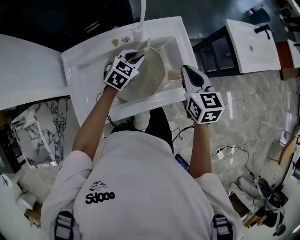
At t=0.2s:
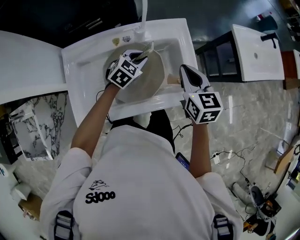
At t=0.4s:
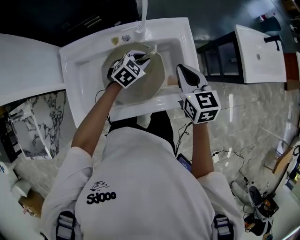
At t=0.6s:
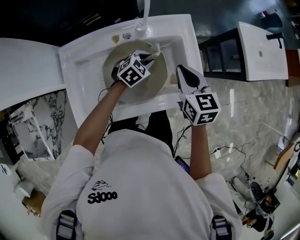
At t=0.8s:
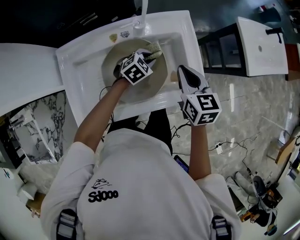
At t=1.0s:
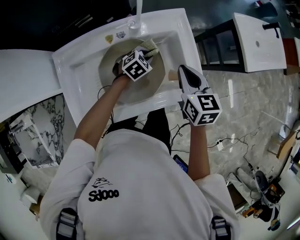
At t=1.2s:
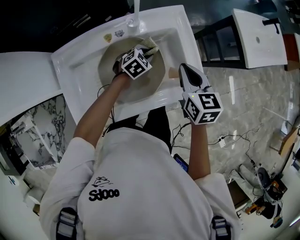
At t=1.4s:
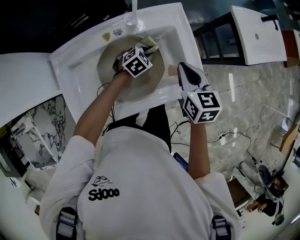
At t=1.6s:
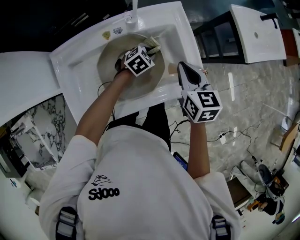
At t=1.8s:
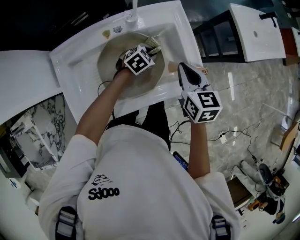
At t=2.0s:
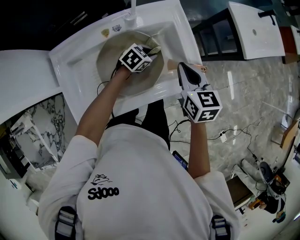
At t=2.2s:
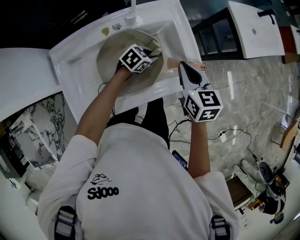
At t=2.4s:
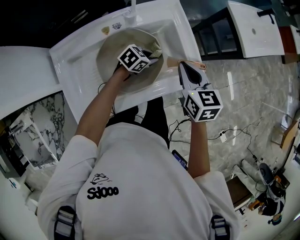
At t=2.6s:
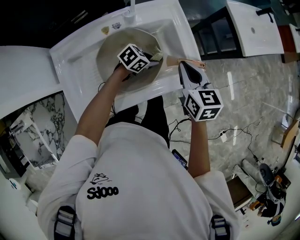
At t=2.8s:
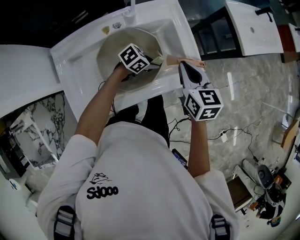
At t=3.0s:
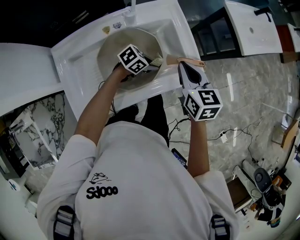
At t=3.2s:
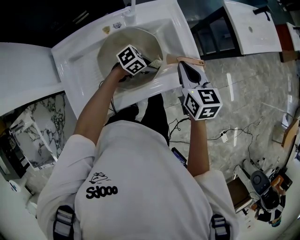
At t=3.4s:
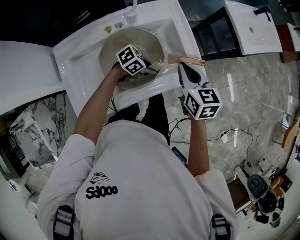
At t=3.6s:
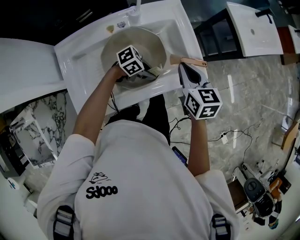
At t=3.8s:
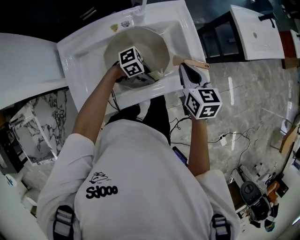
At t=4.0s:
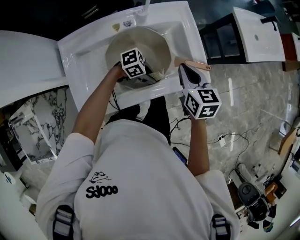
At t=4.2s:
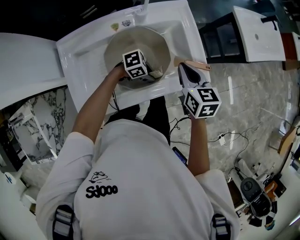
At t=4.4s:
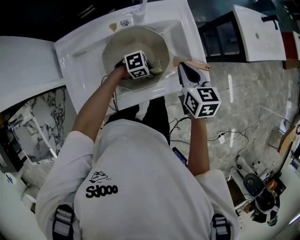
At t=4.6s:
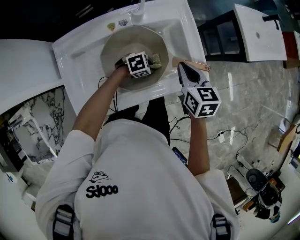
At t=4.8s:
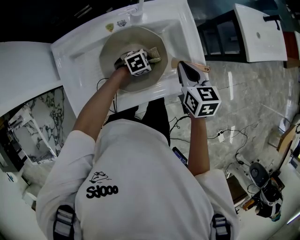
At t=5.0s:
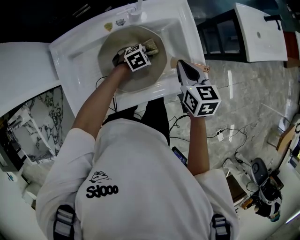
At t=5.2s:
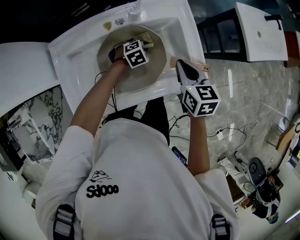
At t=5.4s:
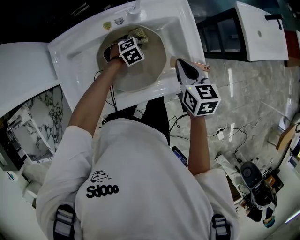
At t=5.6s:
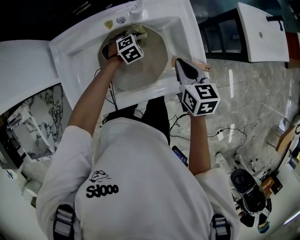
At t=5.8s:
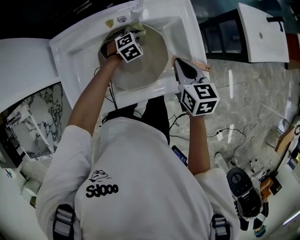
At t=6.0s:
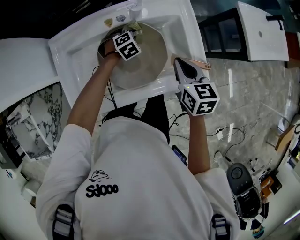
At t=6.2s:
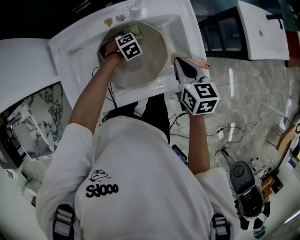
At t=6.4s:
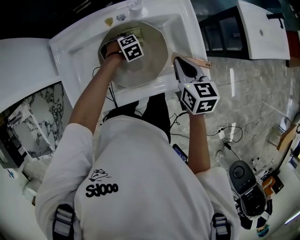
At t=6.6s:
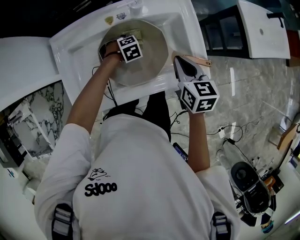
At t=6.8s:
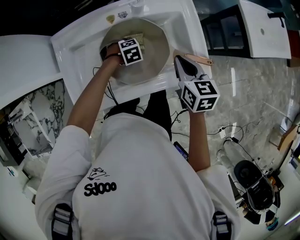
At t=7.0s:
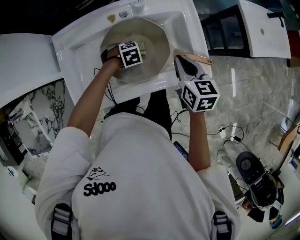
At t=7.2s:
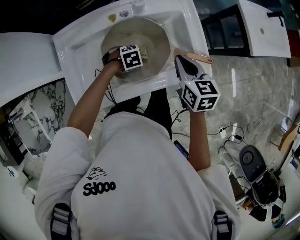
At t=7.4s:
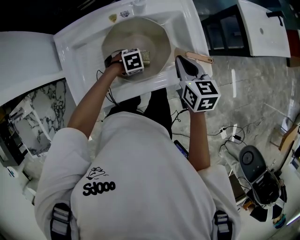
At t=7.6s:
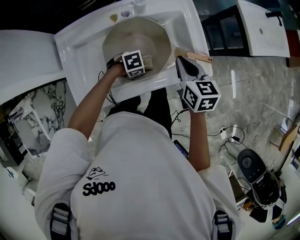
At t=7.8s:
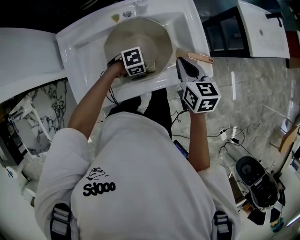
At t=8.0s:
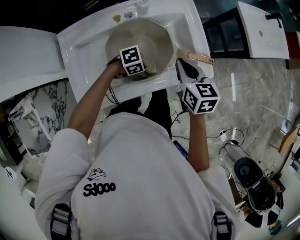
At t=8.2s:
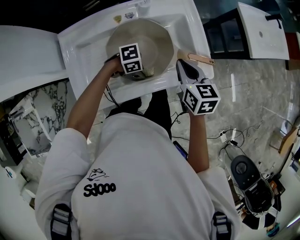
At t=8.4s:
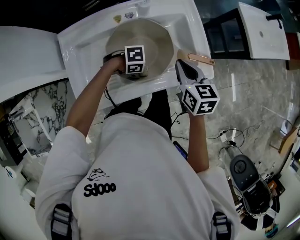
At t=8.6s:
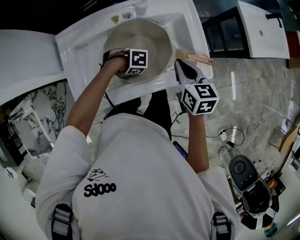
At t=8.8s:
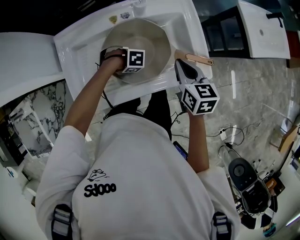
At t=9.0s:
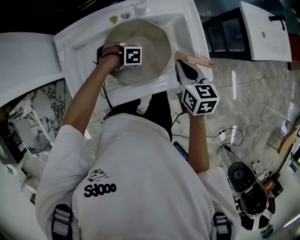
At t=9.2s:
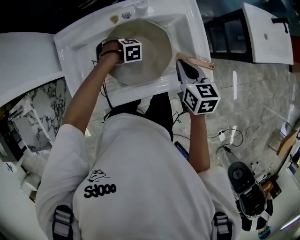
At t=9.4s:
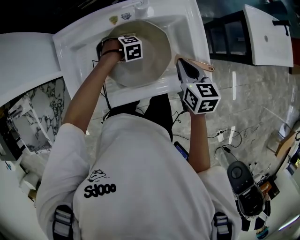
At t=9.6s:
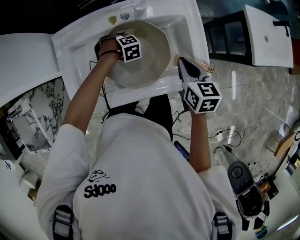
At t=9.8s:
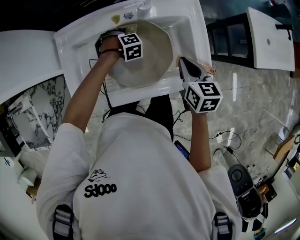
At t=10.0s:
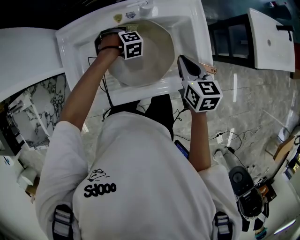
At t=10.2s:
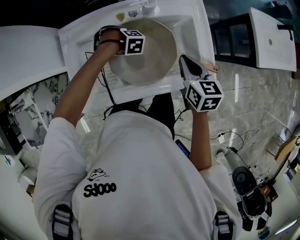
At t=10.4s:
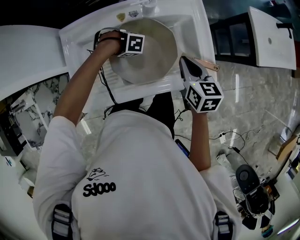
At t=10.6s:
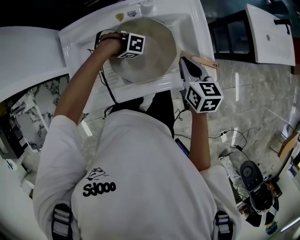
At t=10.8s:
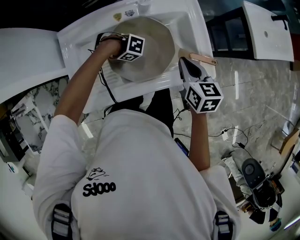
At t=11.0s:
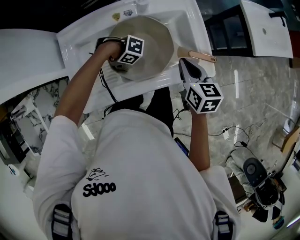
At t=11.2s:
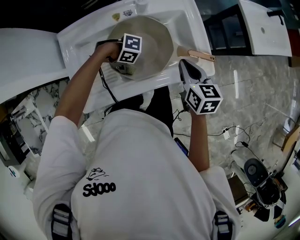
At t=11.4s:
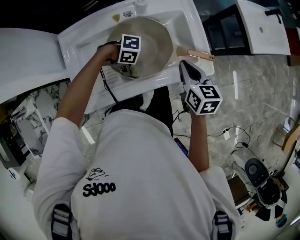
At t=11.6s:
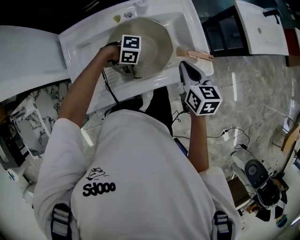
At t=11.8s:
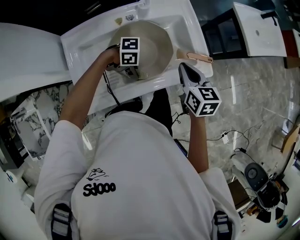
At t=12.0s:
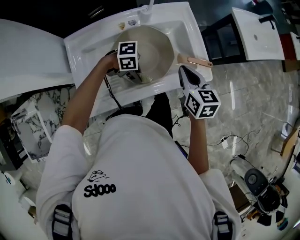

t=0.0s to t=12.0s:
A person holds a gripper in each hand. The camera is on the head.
t=0.0s to t=1.6s: The left gripper heads downward and to the right, covering some 15 cm, and rotates approximately 20 degrees.
t=1.6s to t=3.0s: The left gripper moves backward and to the right, roughly 10 cm, and rotates roughly 30 degrees.
t=3.0s to t=4.4s: The left gripper ends up some 5 cm from where it was.
t=4.4s to t=6.0s: The left gripper ends up approximately 20 cm from where it was, and swivels about 50 degrees.
t=6.0s to t=7.6s: The left gripper ends up some 20 cm from where it was, and rotates roughly 40 degrees.
t=7.6s to t=9.0s: The left gripper moves some 10 cm, and swivels some 30 degrees.
t=10.4s to t=12.0s: The right gripper moves approximately 5 cm. Meanwhile the left gripper ends up some 20 cm from where it was, and swivels about 50 degrees.

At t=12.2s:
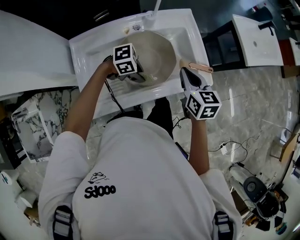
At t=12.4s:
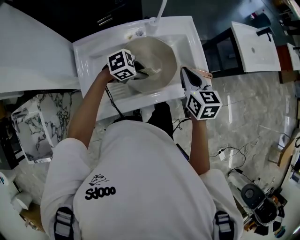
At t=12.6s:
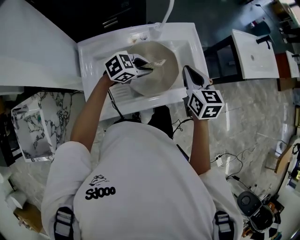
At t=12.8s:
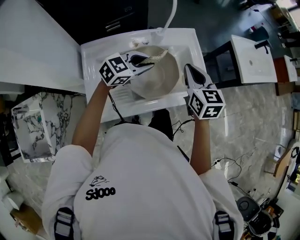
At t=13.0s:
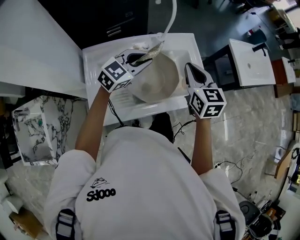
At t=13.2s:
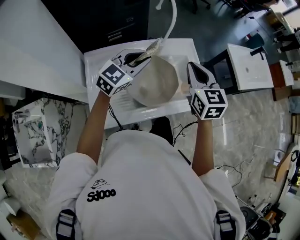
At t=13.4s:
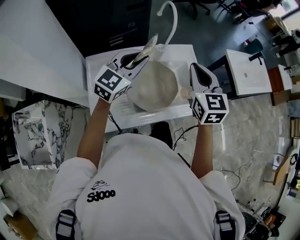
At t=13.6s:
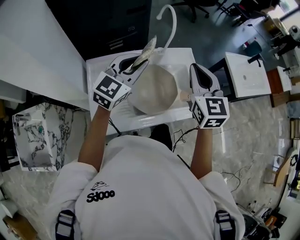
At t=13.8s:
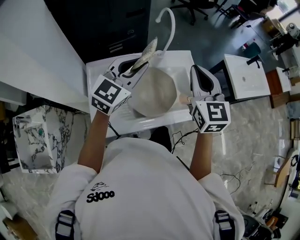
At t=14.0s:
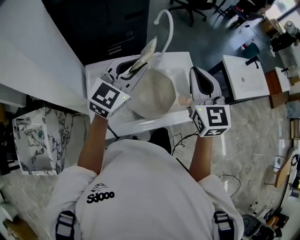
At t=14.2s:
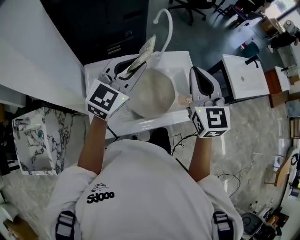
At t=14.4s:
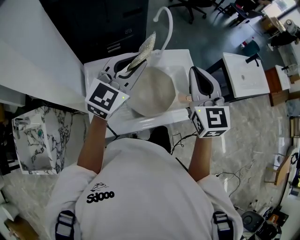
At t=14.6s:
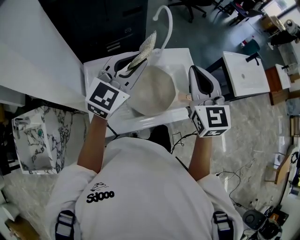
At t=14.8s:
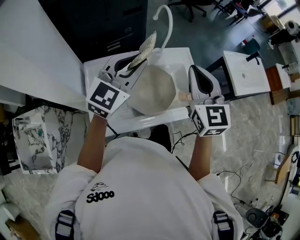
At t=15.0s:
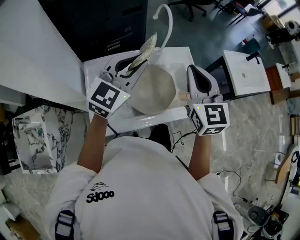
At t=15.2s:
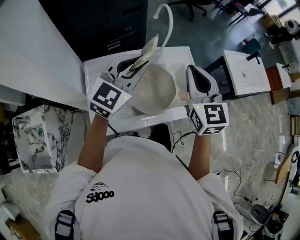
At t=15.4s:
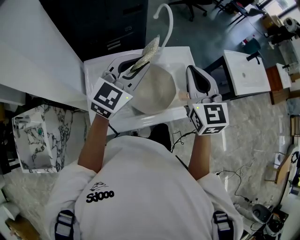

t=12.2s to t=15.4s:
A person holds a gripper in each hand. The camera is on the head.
t=12.2s to t=13.8s: The two grippers go some 25 cm upward. The left gripper tips its fingers upward by approximately 40 degrees; the right gripper changes its angle by roughly 30 degrees.
t=13.8s to t=15.4s: The grippers move only a little.

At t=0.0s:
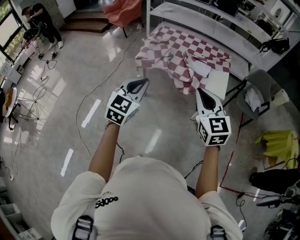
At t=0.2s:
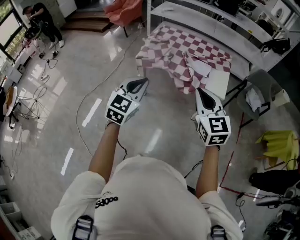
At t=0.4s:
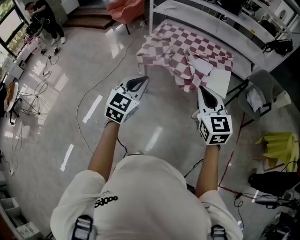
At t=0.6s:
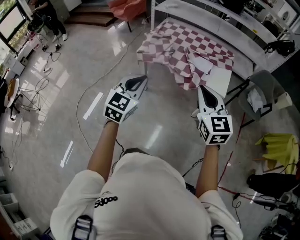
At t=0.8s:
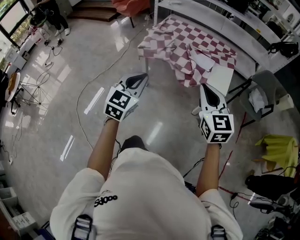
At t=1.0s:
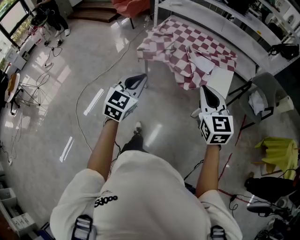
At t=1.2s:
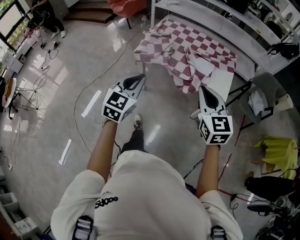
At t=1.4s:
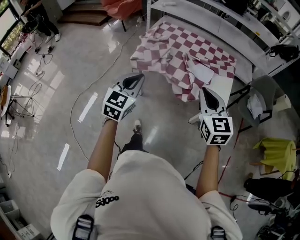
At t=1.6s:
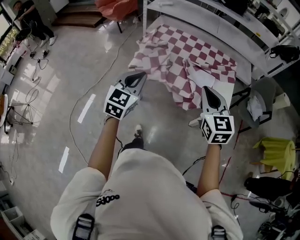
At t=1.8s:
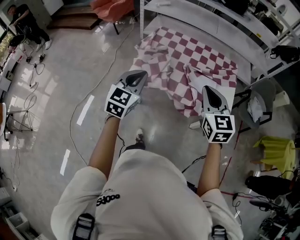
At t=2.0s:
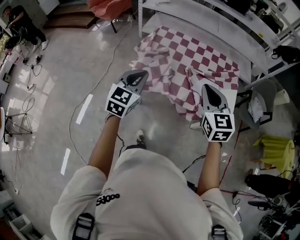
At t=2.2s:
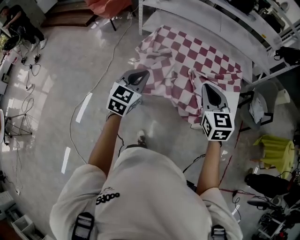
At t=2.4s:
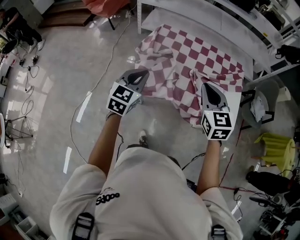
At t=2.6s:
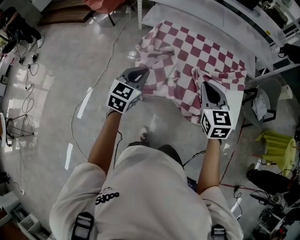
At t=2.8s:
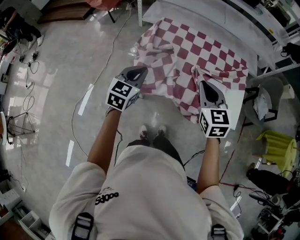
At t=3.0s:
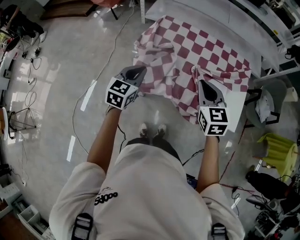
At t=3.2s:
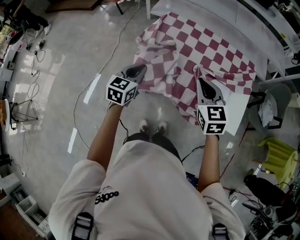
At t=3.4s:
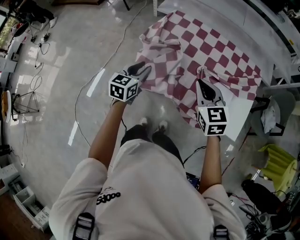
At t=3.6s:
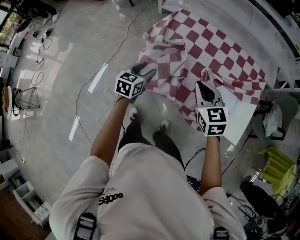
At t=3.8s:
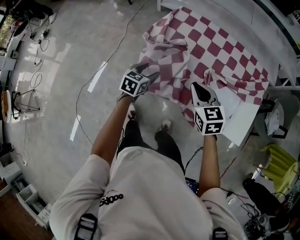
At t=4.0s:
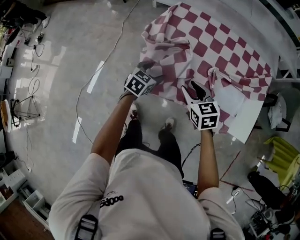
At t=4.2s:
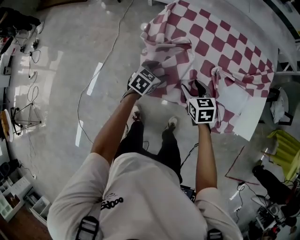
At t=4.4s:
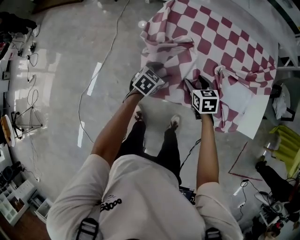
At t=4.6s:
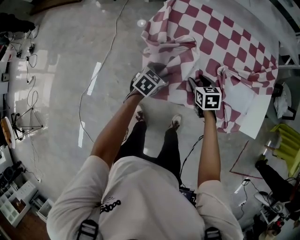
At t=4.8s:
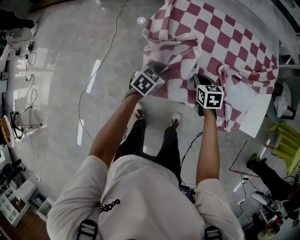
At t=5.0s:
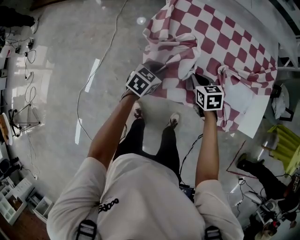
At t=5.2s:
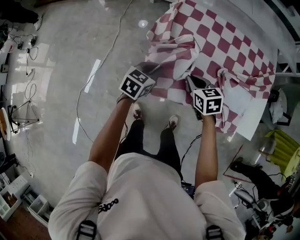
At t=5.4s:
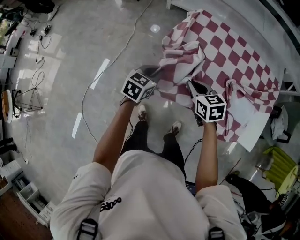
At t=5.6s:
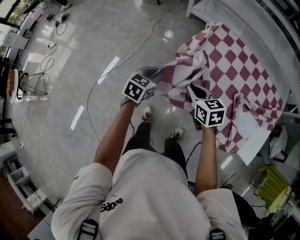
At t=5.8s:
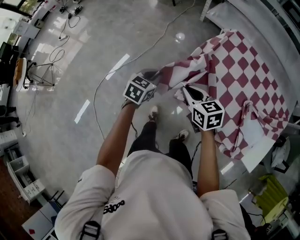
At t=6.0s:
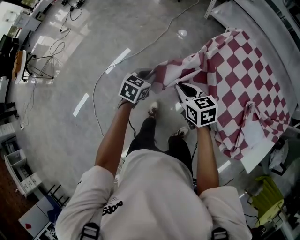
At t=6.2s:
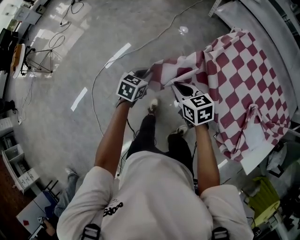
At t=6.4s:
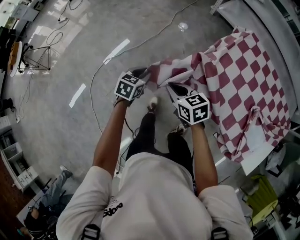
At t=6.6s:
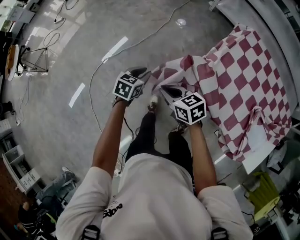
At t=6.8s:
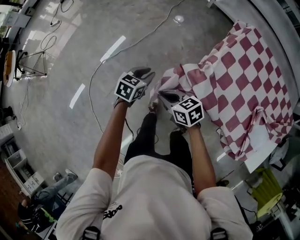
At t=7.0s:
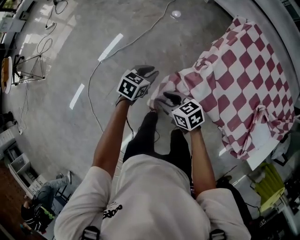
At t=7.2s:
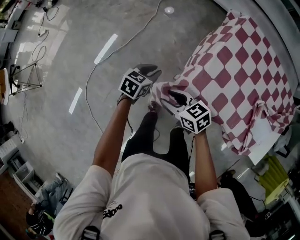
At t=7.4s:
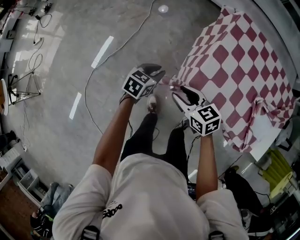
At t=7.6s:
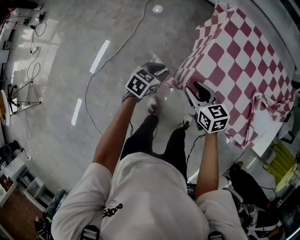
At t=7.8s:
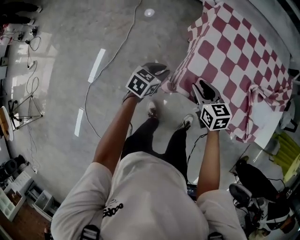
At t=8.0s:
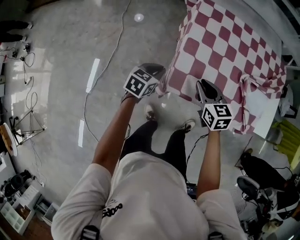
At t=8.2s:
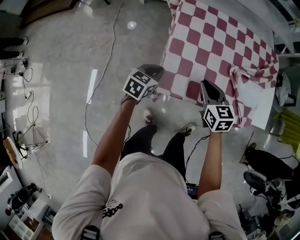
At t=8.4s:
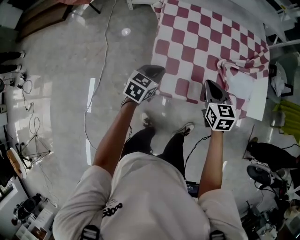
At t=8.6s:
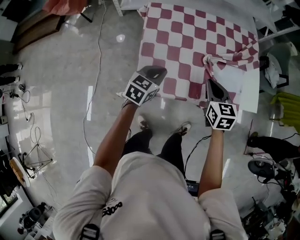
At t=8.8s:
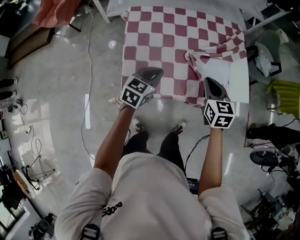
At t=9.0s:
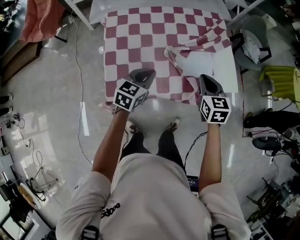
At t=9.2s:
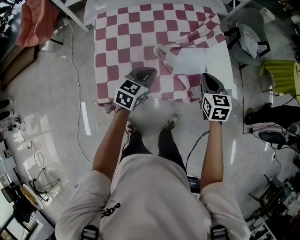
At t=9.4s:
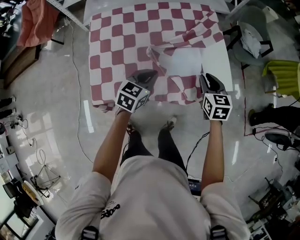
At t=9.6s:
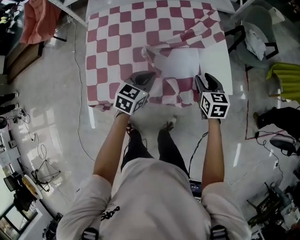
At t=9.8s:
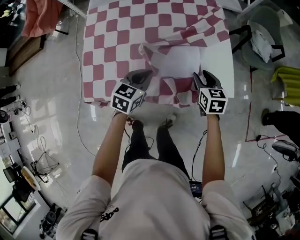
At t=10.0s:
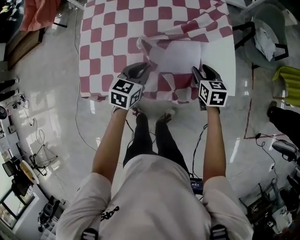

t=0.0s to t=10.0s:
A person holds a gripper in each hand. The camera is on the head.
t=0.0s to t=1.4s: Both grippers move forward, about 15 cm.
t=1.4s to t=2.8s: The right gripper travels forward and to the left by about 30 cm; the left gripper heads forward, covering about 30 cm.
t=2.8s to t=4.2s: The right gripper goes approximately 25 cm downward, rotates roughly 30 degrees, and opens; the left gripper is displaced downward and forward by about 25 cm, turns by approximately 30 degrees, and opens up.
t=4.2s to t=5.8s: The right gripper ends up roughly 25 cm from where it was, swivels about 30 degrees, and closes its fingers, while the left gripper moves roughly 25 cm, turns by some 30 degrees, and closes.
t=5.8s to t=7.2s: The left gripper travels downward by approximately 15 cm, while the right gripper shifts approximately 15 cm downward and to the left, and opens its fingers.
t=7.2s to t=8.6s: The right gripper moves about 40 cm, rotates some 70 degrees, and closes. The left gripper ends up about 35 cm from where it was, and rotates approximately 40 degrees.
t=8.6s to t=10.0s: The right gripper shifts about 35 cm to the right, downward and forward, and opens its fingers, while the left gripper travels to the right by roughly 25 cm.
